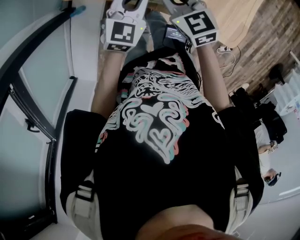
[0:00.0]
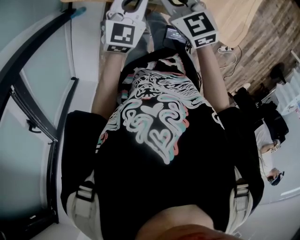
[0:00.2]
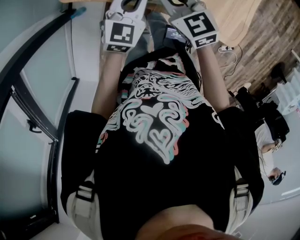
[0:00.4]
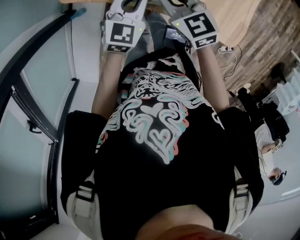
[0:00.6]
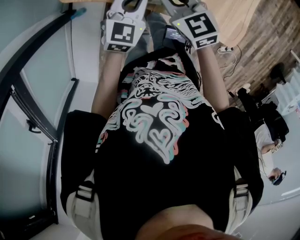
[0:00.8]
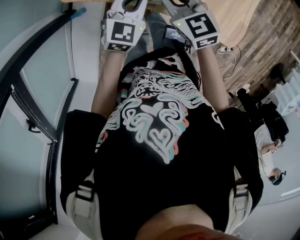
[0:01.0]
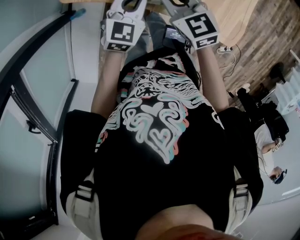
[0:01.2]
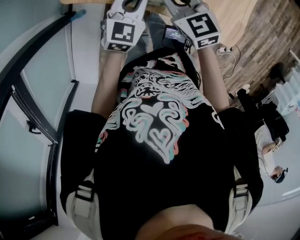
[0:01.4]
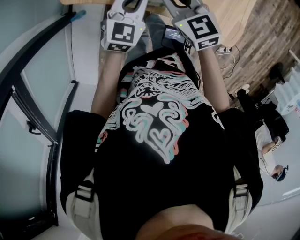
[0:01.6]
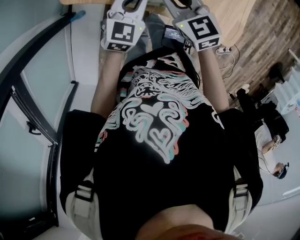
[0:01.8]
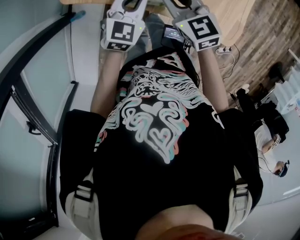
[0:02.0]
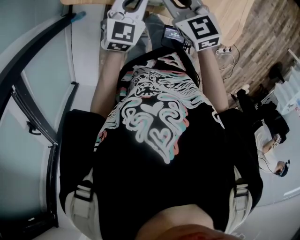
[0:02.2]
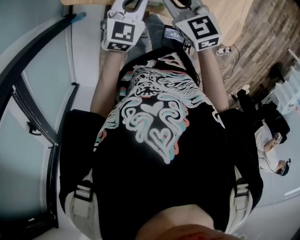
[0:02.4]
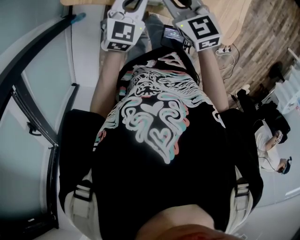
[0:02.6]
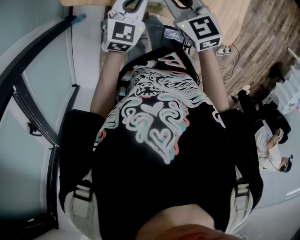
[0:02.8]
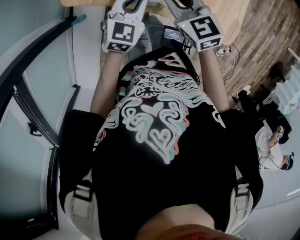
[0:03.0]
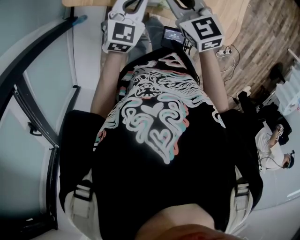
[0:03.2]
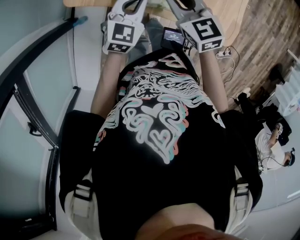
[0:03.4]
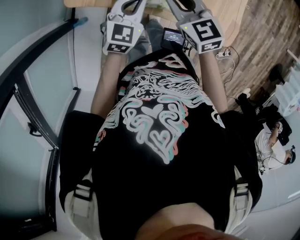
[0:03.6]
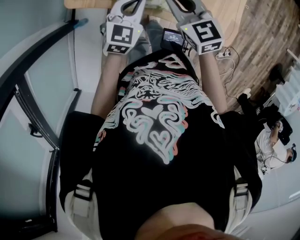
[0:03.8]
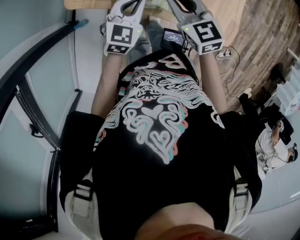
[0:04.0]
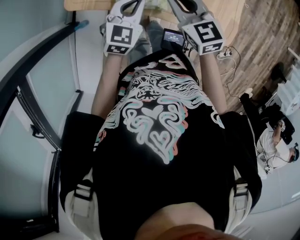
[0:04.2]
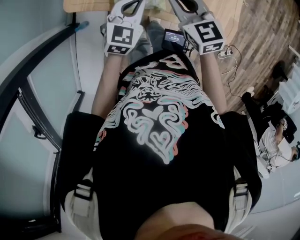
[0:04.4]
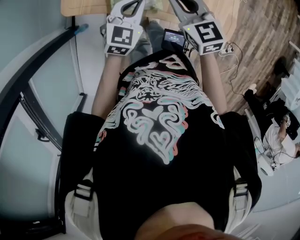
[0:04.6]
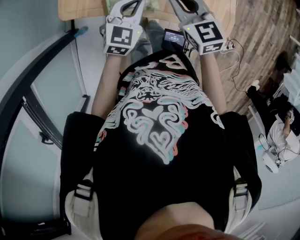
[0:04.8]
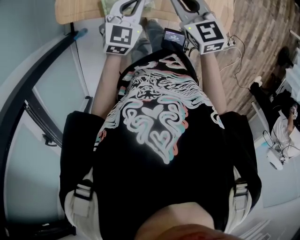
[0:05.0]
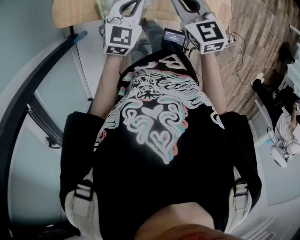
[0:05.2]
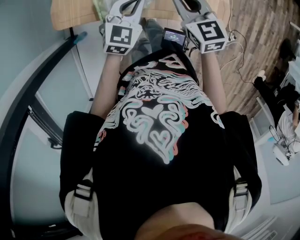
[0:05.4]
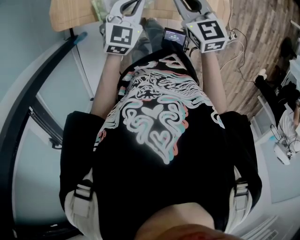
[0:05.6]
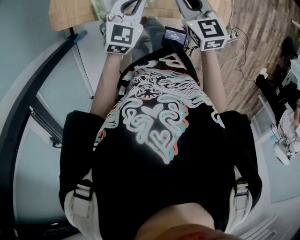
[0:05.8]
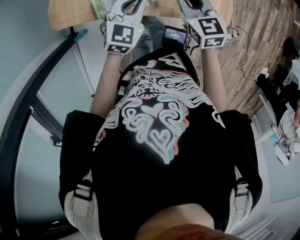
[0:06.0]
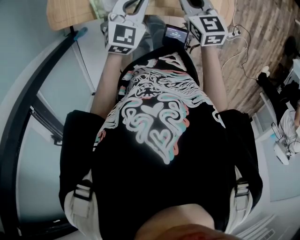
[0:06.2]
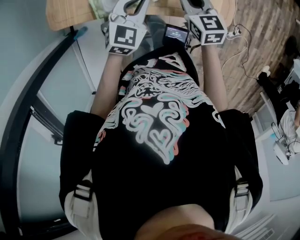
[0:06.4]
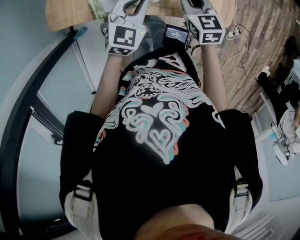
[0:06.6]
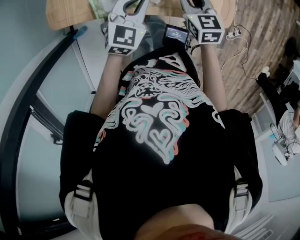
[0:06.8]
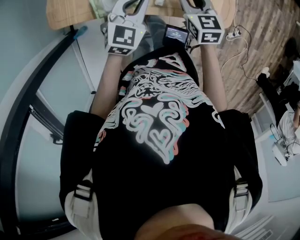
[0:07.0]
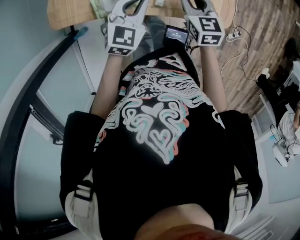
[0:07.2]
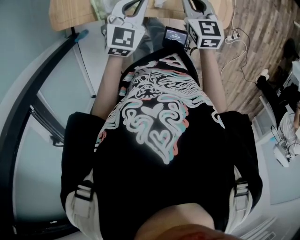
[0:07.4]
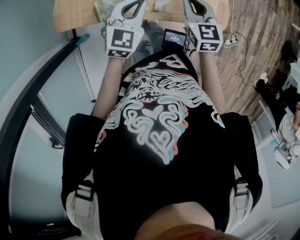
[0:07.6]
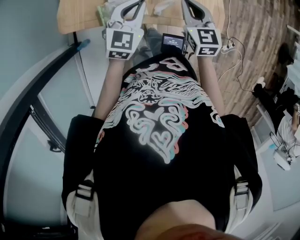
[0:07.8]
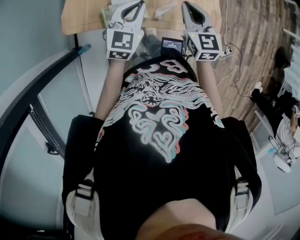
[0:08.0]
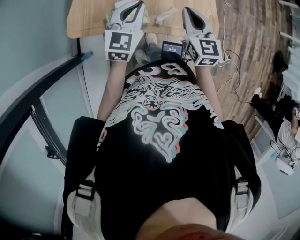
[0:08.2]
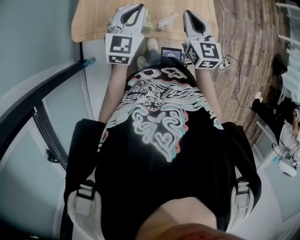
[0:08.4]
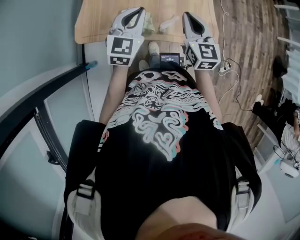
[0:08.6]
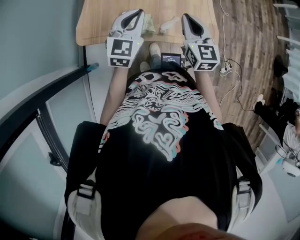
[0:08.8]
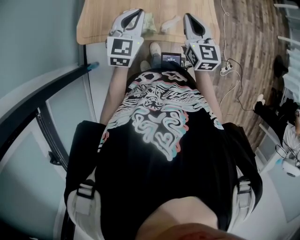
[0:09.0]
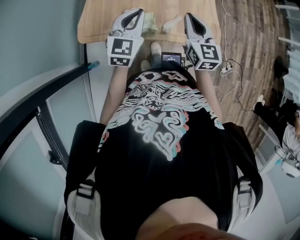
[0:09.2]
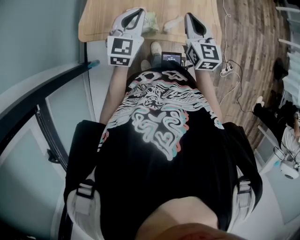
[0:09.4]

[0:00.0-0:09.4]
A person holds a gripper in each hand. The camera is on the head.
0:00.0 to 0:03.2: The grippers stay close to where they were, moving slightly.
0:03.2 to 0:04.8: The right gripper heads to the right, covering some 5 cm.
0:04.8 to 0:06.2: The right gripper heads to the right and downward, covering approximately 10 cm. The left gripper goes roughly 5 cm to the right.
0:06.2 to 0:07.8: Both grippers move upward, approximately 5 cm.
0:07.8 to 0:09.4: The left gripper travels upward and to the left by approximately 10 cm. Meanwhile the right gripper travels upward by approximately 10 cm.

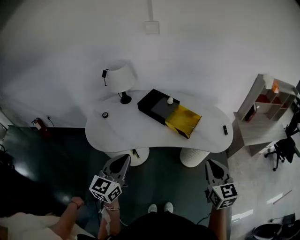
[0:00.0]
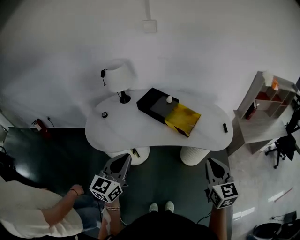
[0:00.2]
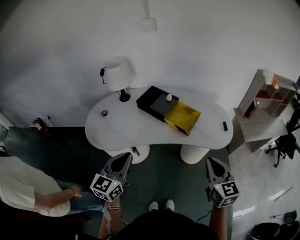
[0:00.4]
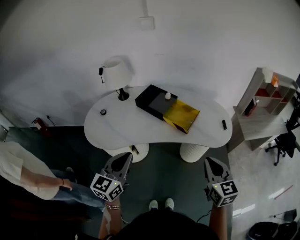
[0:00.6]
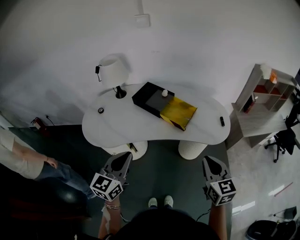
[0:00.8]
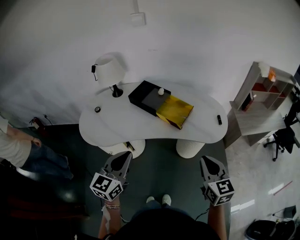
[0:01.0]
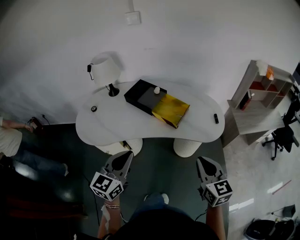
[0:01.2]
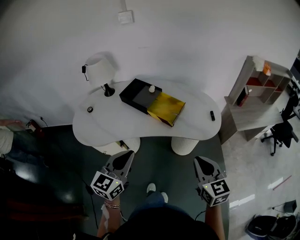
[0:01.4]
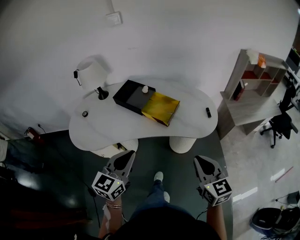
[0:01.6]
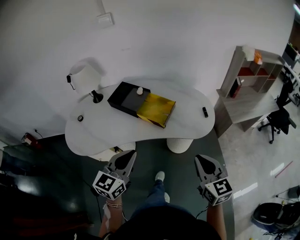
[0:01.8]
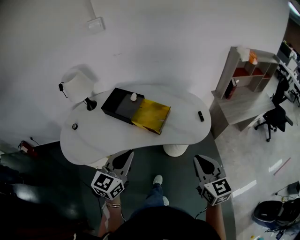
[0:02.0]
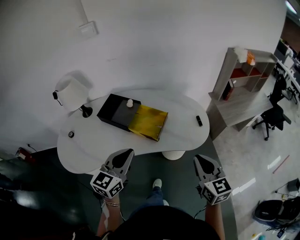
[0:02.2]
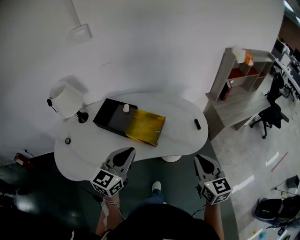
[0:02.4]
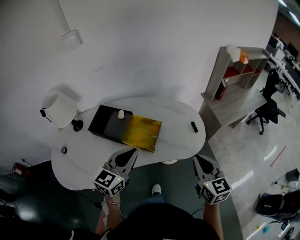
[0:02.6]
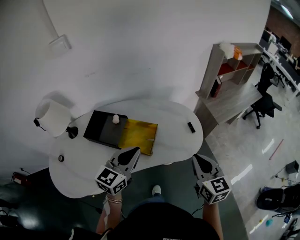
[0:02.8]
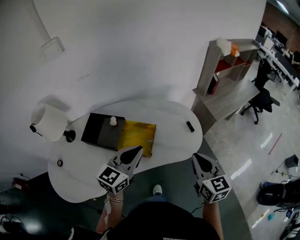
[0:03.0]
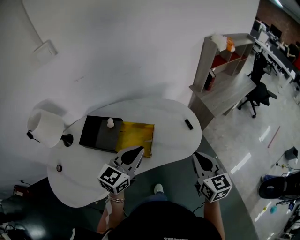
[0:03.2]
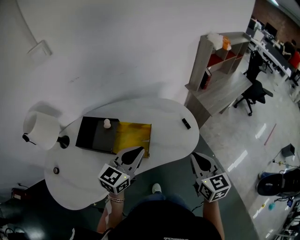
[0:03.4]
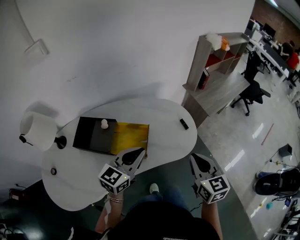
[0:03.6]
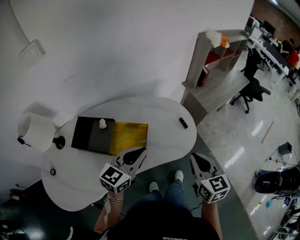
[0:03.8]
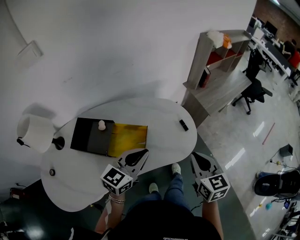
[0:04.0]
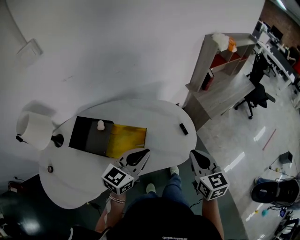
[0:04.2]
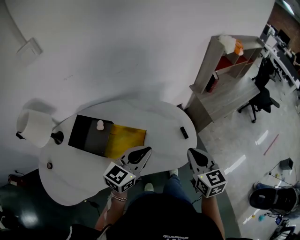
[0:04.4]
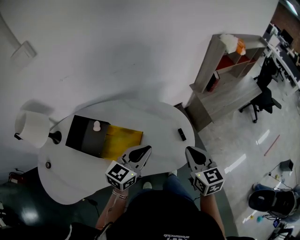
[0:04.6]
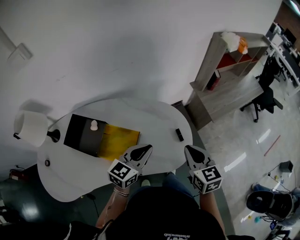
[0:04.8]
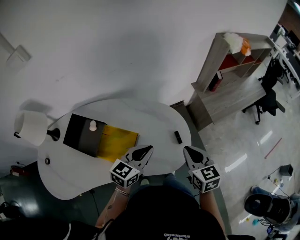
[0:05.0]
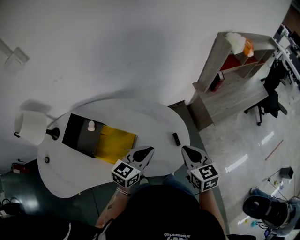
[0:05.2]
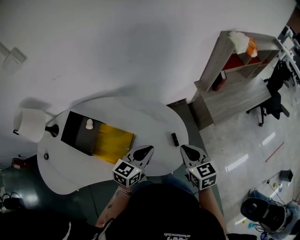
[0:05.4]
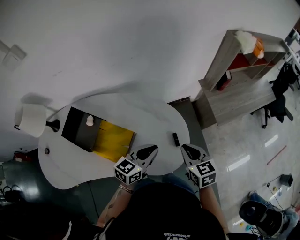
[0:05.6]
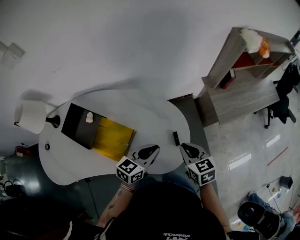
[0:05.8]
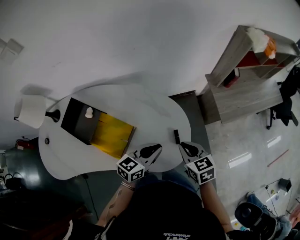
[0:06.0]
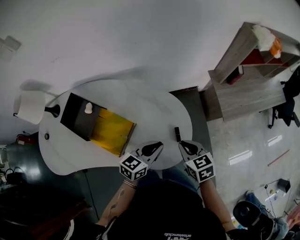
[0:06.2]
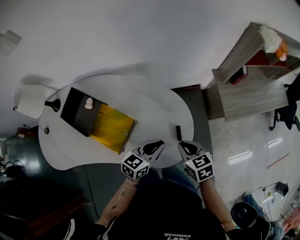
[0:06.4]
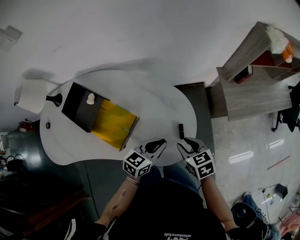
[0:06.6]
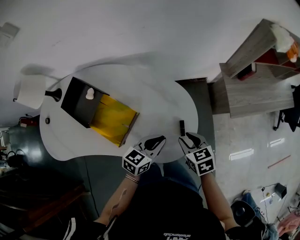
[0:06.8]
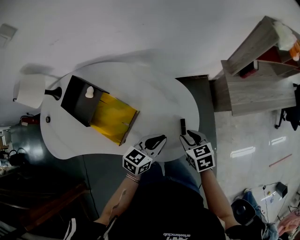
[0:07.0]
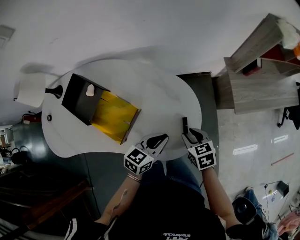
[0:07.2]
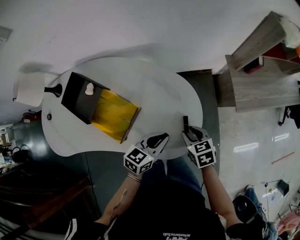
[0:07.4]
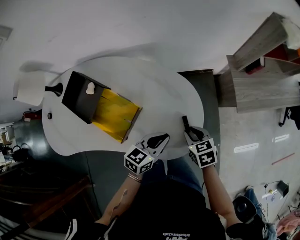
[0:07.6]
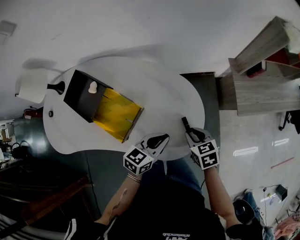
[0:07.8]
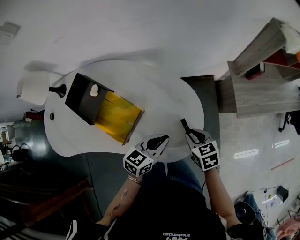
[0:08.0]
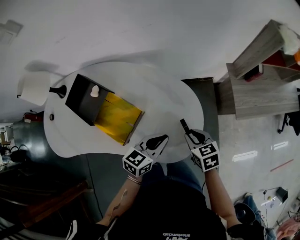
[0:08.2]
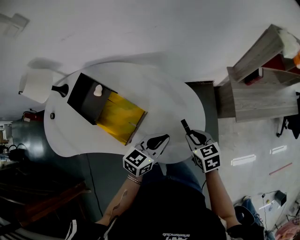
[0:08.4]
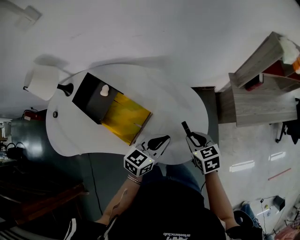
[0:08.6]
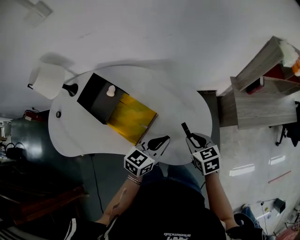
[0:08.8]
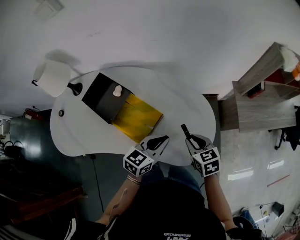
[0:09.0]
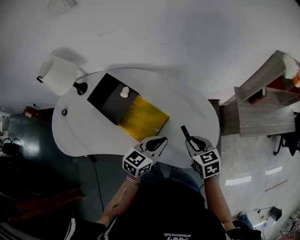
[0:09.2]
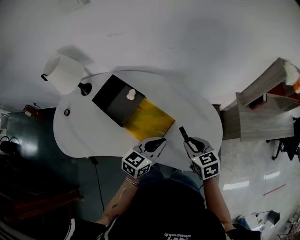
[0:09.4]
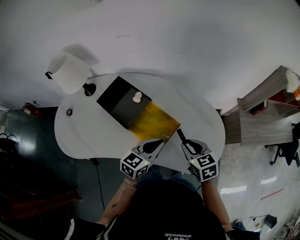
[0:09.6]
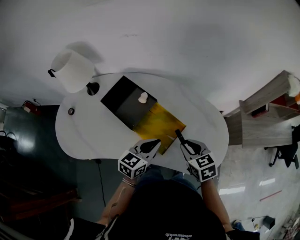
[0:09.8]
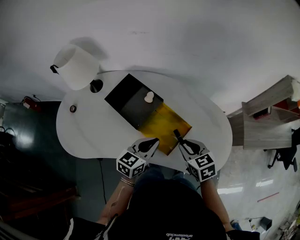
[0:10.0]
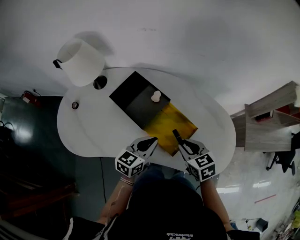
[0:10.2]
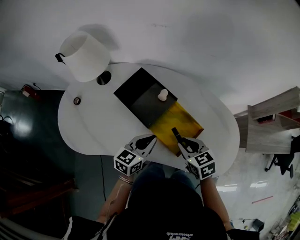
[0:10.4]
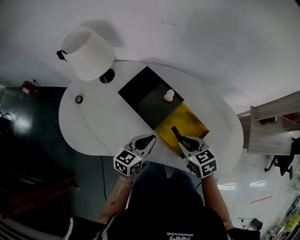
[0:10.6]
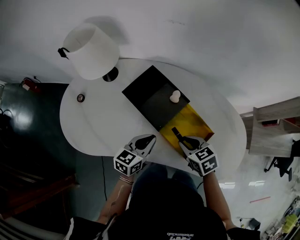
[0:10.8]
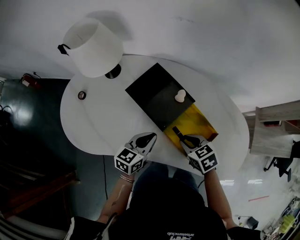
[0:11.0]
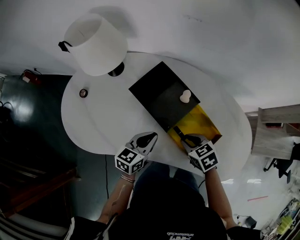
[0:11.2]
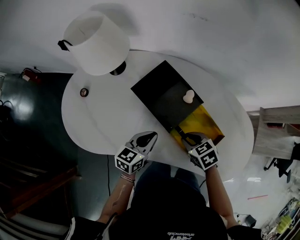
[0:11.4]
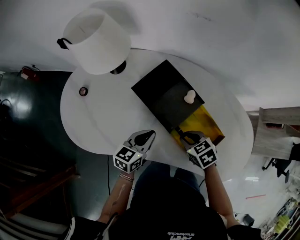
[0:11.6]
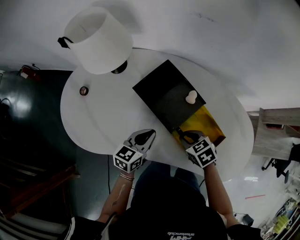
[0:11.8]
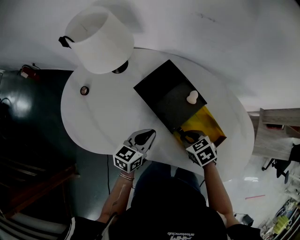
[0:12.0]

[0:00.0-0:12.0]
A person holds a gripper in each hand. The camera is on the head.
0:00.0 to 0:01.6: The right gripper travels to the right by some 5 cm. The left gripper is displaced to the right by about 15 cm.
0:01.6 to 0:03.0: The two grippers go roughly 20 cm forward. The right gripper swivels some 20 degrees. Meanwhile the left gripper rotates about 30 degrees.
0:03.0 to 0:04.4: The left gripper moves forward and to the right, roughly 10 cm. Meanwhile the right gripper heads forward, covering approximately 10 cm.
0:04.4 to 0:06.0: The right gripper goes roughly 15 cm downward and forward, and changes its angle by about 30 degrees. The left gripper shifts roughly 20 cm downward, to the right and forward, and changes its angle by about 20 degrees.
0:06.0 to 0:07.6: The right gripper moves downward, approximately 10 cm, and opens its fingers, while the left gripper heads downward, covering about 5 cm.
0:07.6 to 0:09.0: The left gripper is displaced to the left and upward by roughly 10 cm, while the right gripper shifts approximately 10 cm upward and to the left.
0:09.0 to 0:10.4: The two grippers go some 25 cm to the left.
0:10.4 to 0:12.0: The left gripper goes some 10 cm to the left and forward. The right gripper shifts about 15 cm downward, to the left and forward, and swivels roughly 20 degrees.

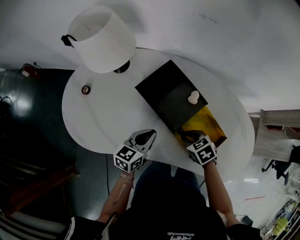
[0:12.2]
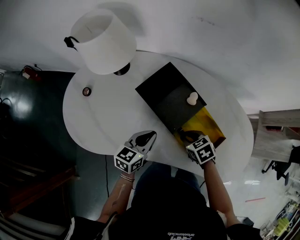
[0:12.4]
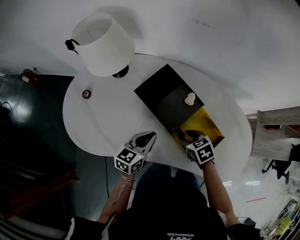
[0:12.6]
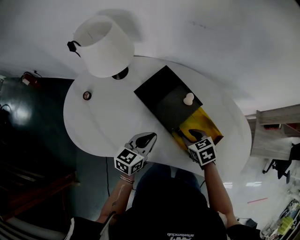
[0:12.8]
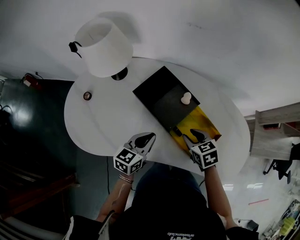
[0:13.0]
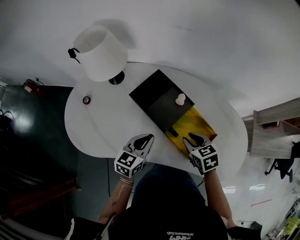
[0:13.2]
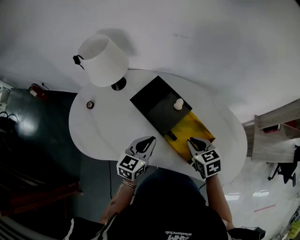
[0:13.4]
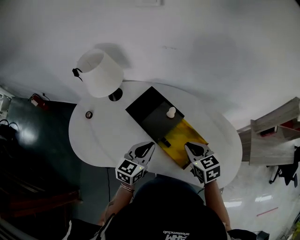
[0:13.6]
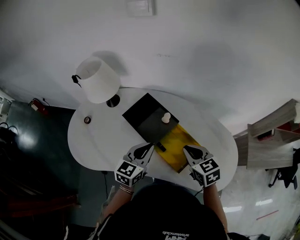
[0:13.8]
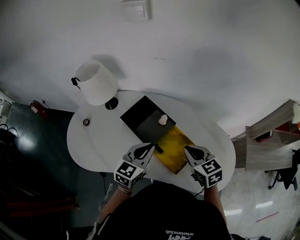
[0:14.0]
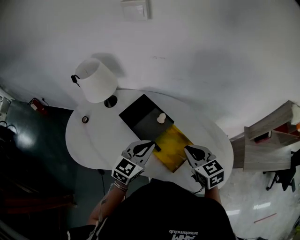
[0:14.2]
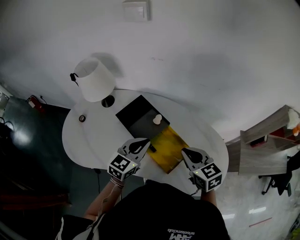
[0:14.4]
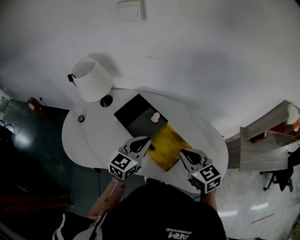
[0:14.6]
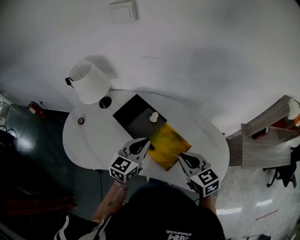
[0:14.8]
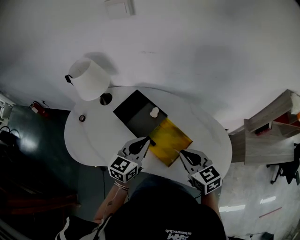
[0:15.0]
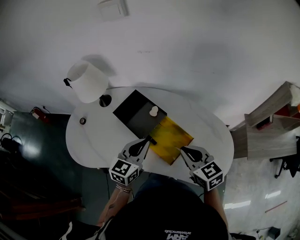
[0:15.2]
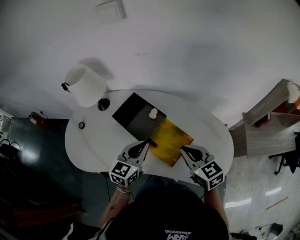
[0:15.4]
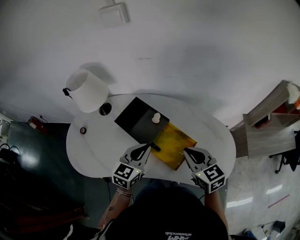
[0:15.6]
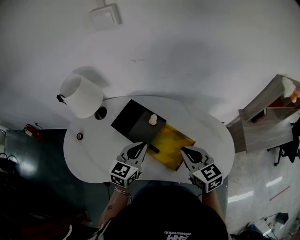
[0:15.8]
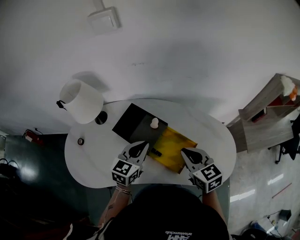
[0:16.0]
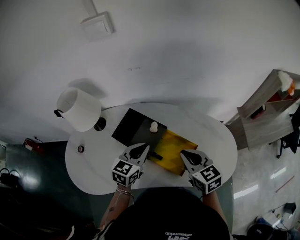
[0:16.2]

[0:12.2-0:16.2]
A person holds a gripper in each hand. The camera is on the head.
0:12.2 to 0:13.6: Both grippers move upward and to the right, roughly 15 cm. The right gripper turns by roughly 30 degrees.
0:13.6 to 0:14.8: The left gripper is displaced to the right and upward by roughly 10 cm. The right gripper shifts some 10 cm upward, to the right and backward.
0:14.8 to 0:16.2: The left gripper moves some 5 cm; the right gripper shifts by about 5 cm.
